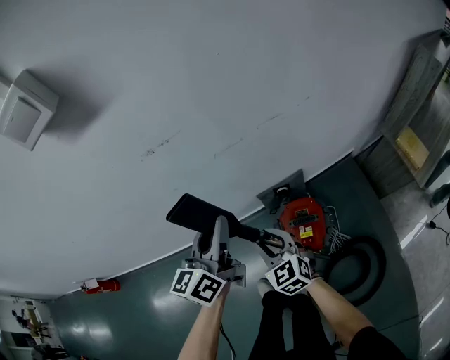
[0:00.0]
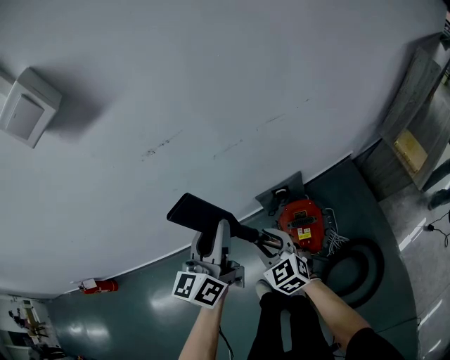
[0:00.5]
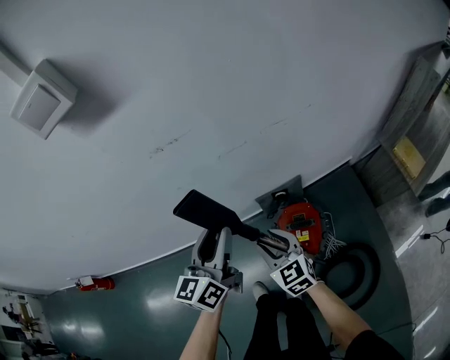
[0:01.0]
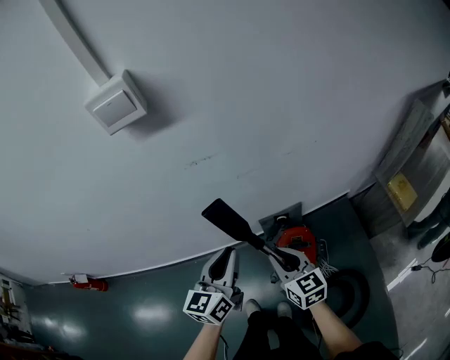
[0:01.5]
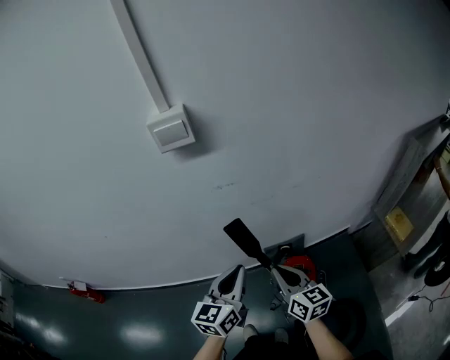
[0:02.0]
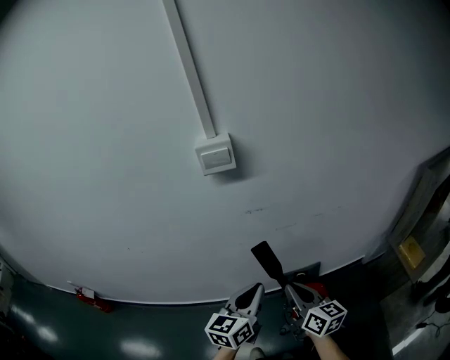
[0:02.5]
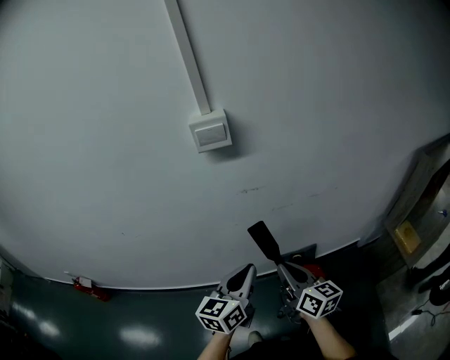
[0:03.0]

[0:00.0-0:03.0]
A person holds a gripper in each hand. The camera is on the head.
0:00.0 to 0:01.5: The right gripper shifts approximately 10 cm upward, and changes its angle by about 20 degrees. Meanwhile the left gripper is displaced backward by some 10 cm.
0:01.5 to 0:03.0: The left gripper moves upward, about 10 cm. Meanwhile the right gripper moves upward and to the left, some 15 cm, and turns by roughly 20 degrees.

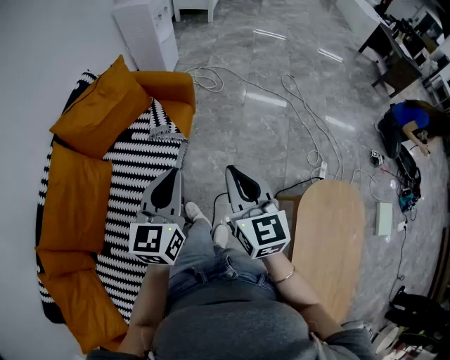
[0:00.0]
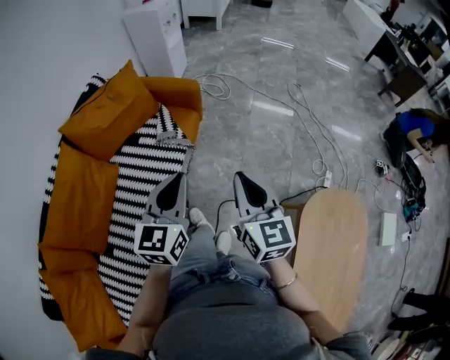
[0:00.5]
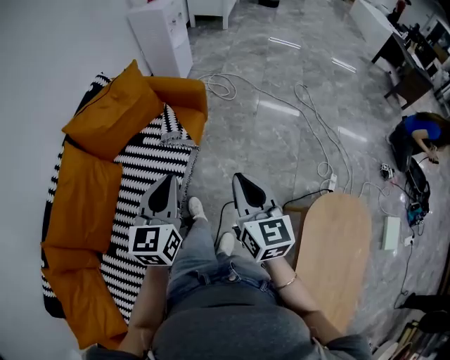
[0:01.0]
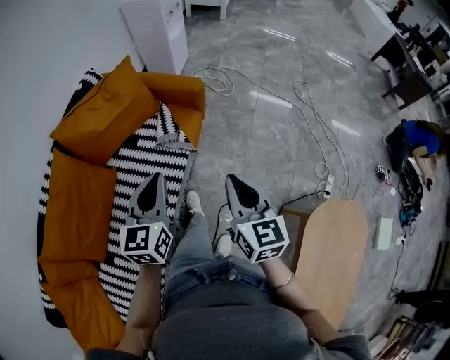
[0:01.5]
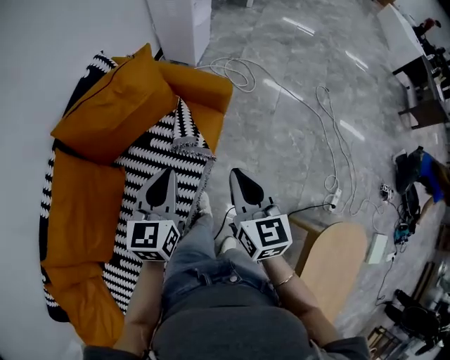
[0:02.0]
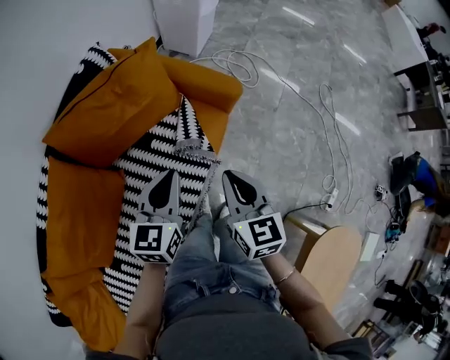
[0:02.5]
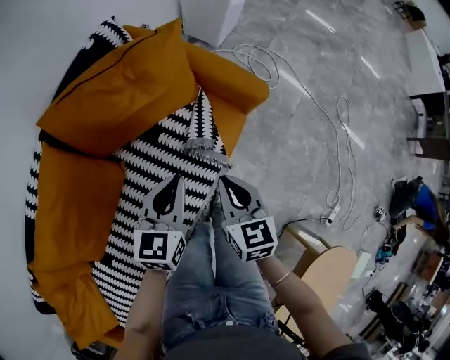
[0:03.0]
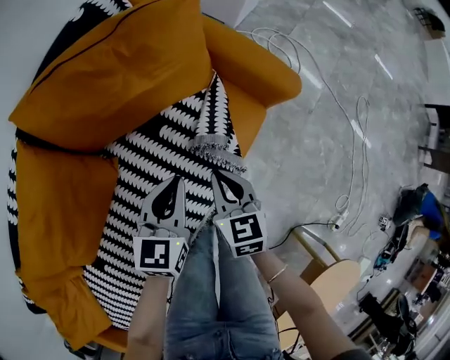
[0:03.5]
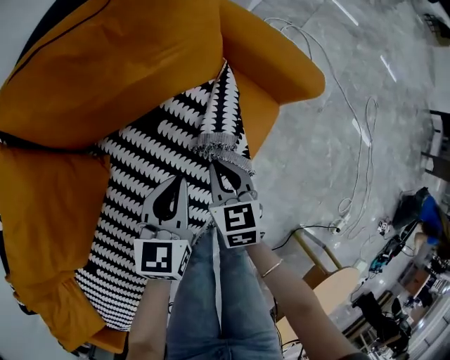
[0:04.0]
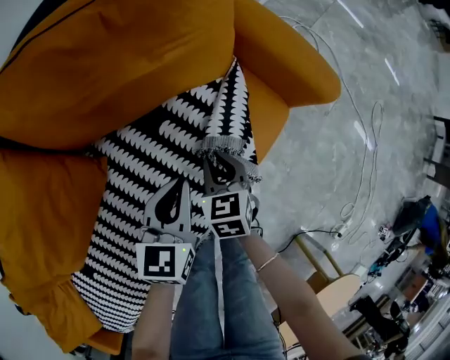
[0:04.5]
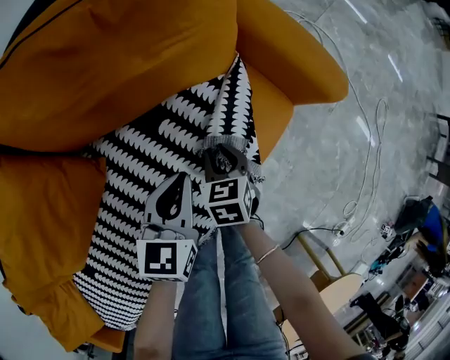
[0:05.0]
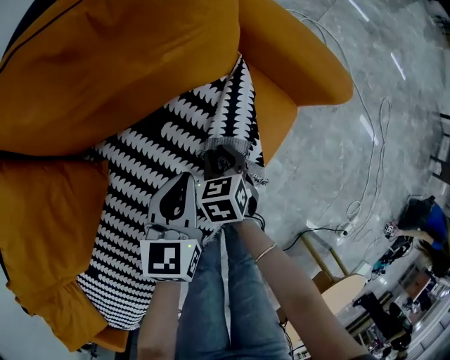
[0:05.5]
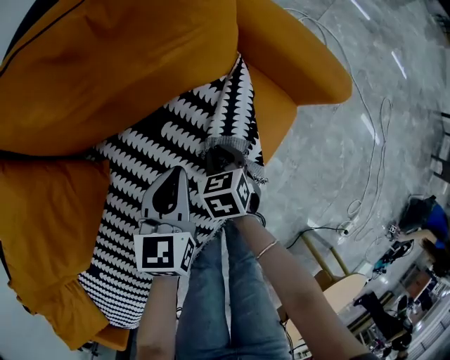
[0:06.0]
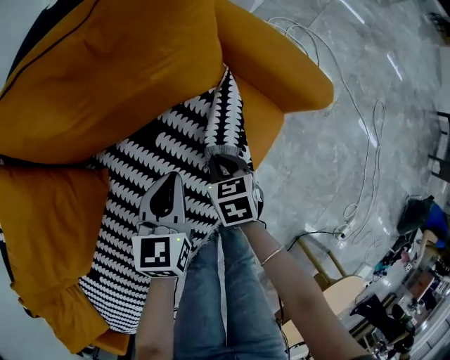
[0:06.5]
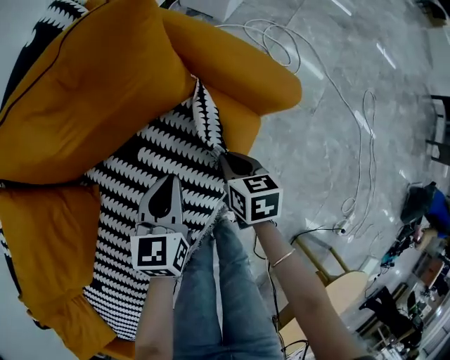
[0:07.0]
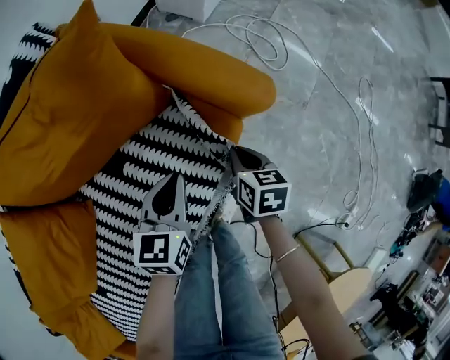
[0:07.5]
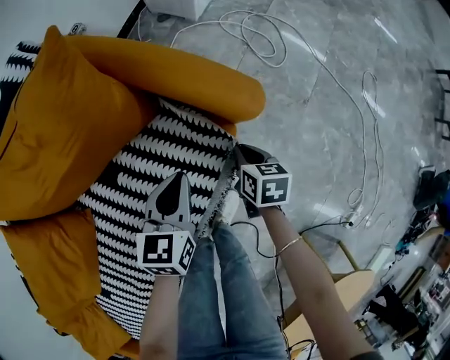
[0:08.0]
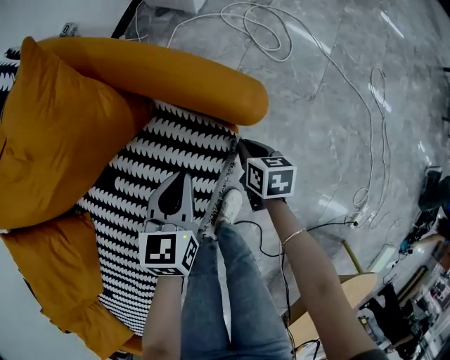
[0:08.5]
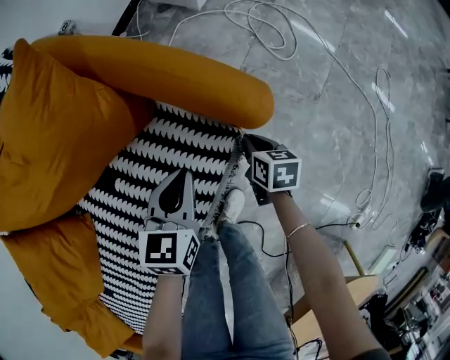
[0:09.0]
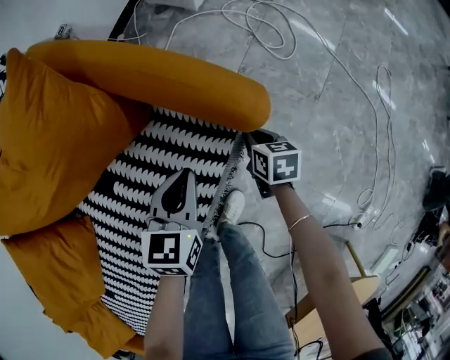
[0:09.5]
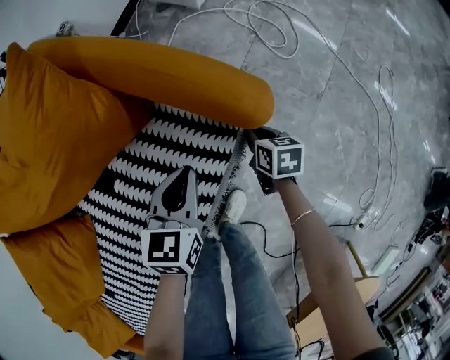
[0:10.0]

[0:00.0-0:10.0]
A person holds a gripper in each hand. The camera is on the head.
0:00.0 to 0:02.0: The two grippers go some 25 cm forward and to the left.
0:02.0 to 0:04.0: The right gripper shifts roughly 40 cm downward, to the left and forward, and turns by some 30 degrees; the left gripper shifts roughly 30 cm downward.
0:04.0 to 0:06.0: The right gripper heads downward, covering roughly 15 cm, and rotates some 20 degrees. The left gripper moves downward, some 5 cm.
0:06.0 to 0:08.0: The grippers both shift to the right by approximately 15 cm. The right gripper turns by roughly 30 degrees.
0:08.0 to 0:10.0: The right gripper is displaced downward by approximately 10 cm; the left gripper shifts by approximately 5 cm.

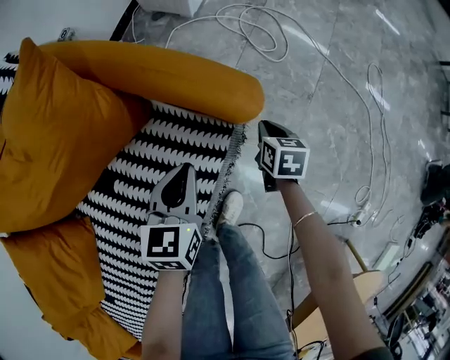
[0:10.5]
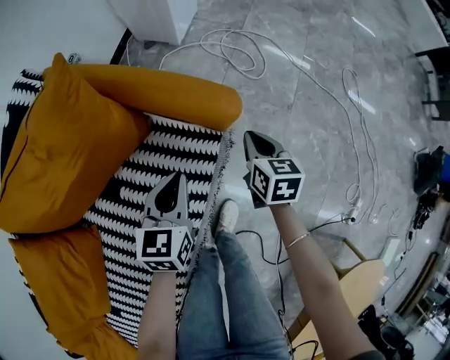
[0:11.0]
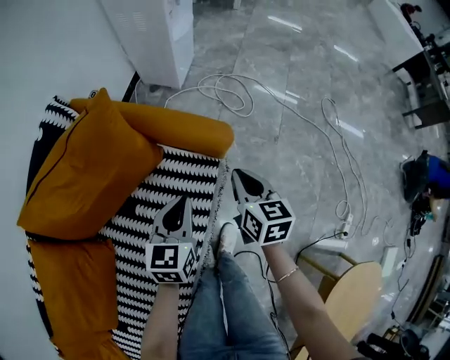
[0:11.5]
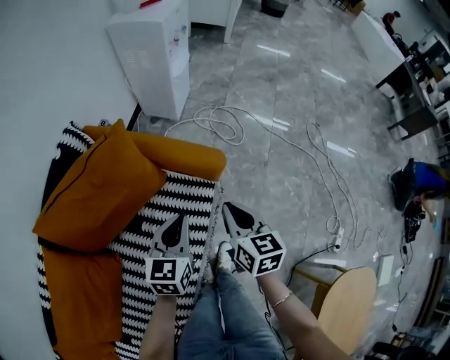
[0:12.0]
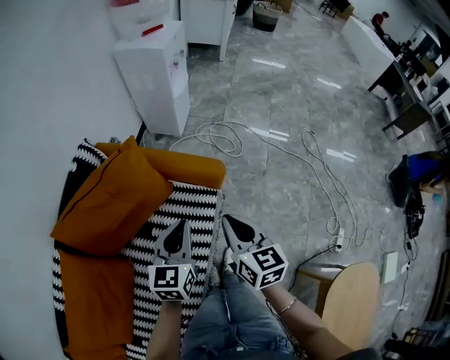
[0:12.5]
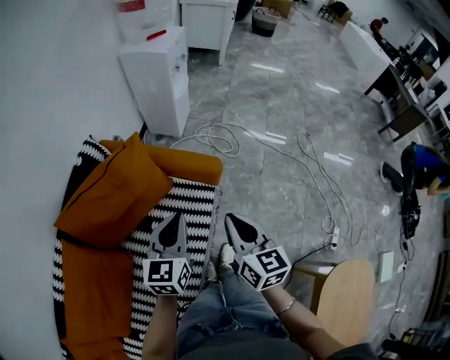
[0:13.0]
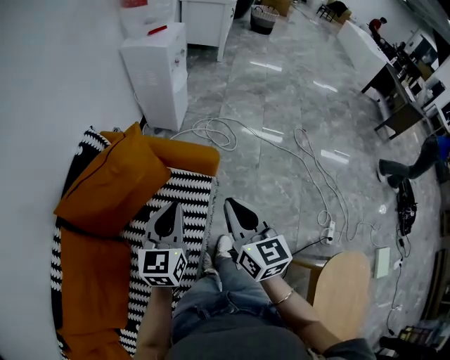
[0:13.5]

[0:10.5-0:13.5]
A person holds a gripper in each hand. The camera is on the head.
0:10.5 to 0:12.0: The left gripper moves upward, about 25 cm, while the right gripper shifts some 40 cm upward and backward, and rotates approximately 30 degrees.
0:12.0 to 0:13.5: The grippers both shift upward and backward by roughly 20 cm.

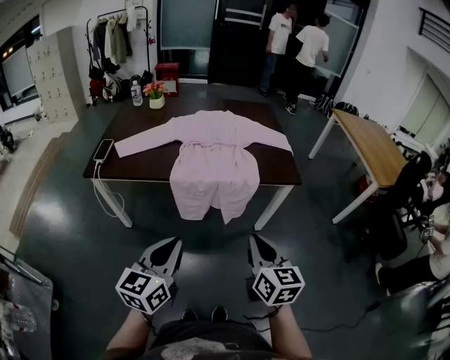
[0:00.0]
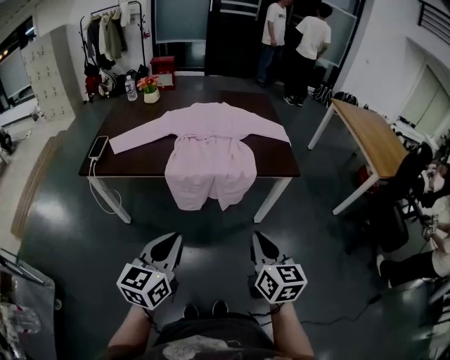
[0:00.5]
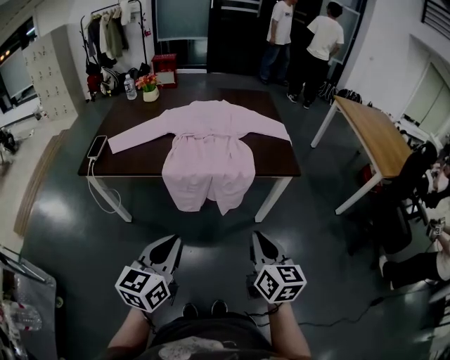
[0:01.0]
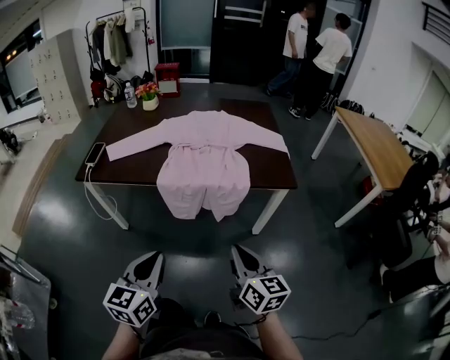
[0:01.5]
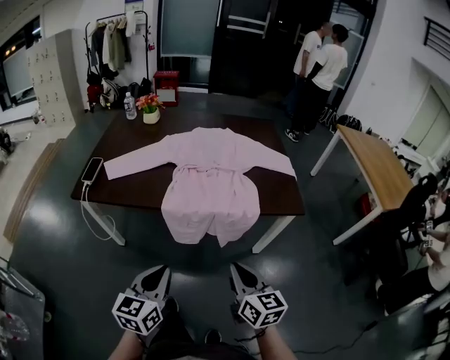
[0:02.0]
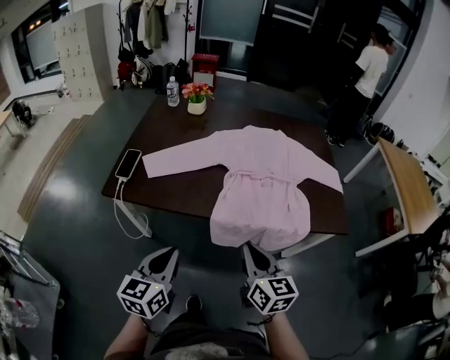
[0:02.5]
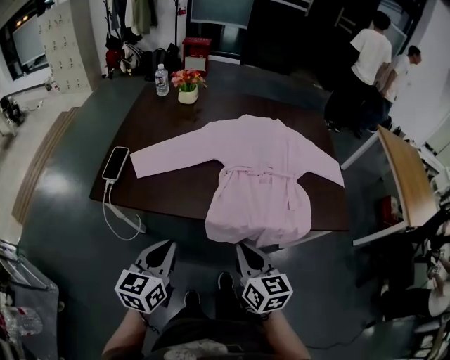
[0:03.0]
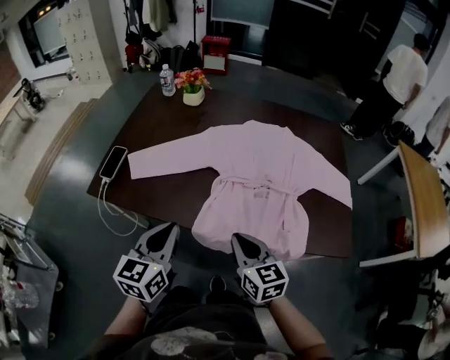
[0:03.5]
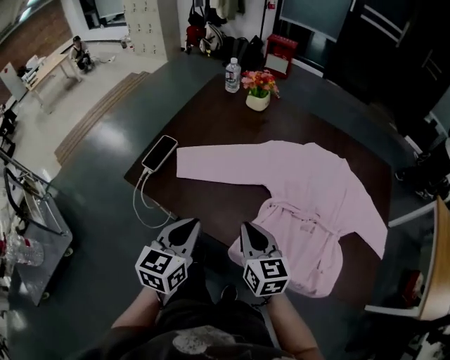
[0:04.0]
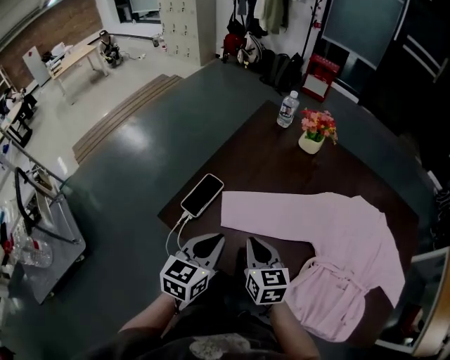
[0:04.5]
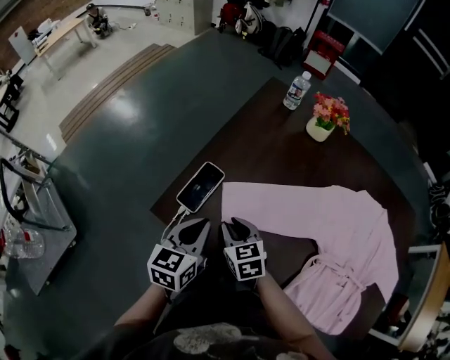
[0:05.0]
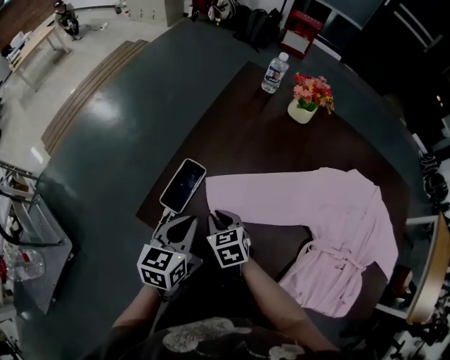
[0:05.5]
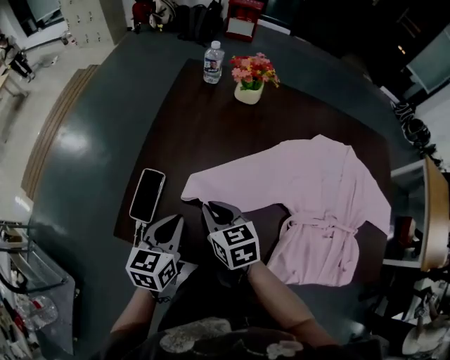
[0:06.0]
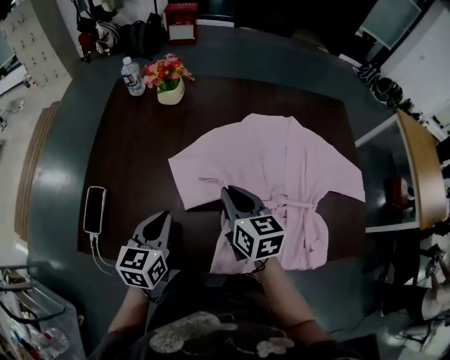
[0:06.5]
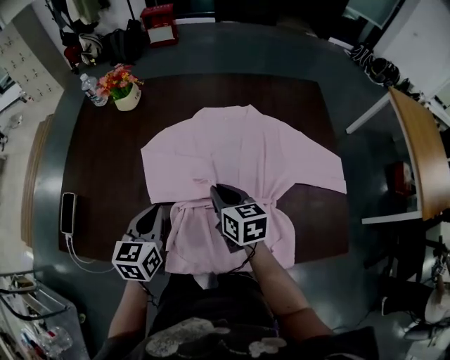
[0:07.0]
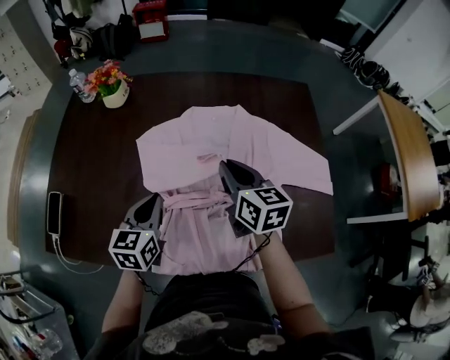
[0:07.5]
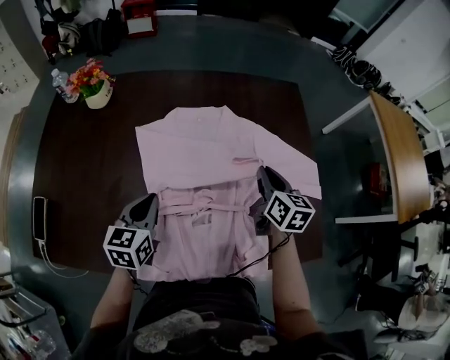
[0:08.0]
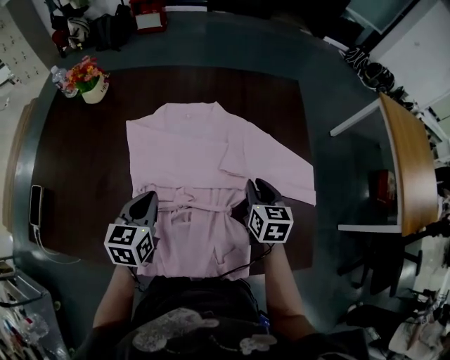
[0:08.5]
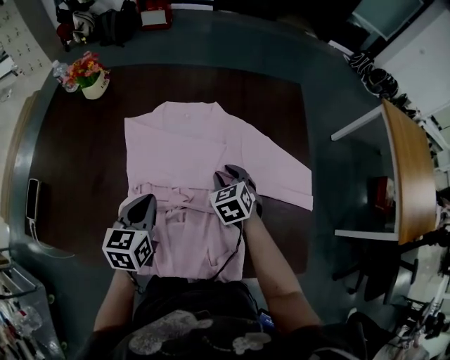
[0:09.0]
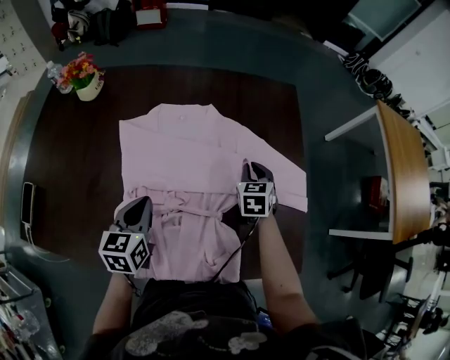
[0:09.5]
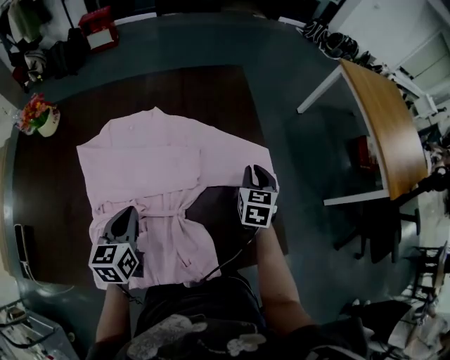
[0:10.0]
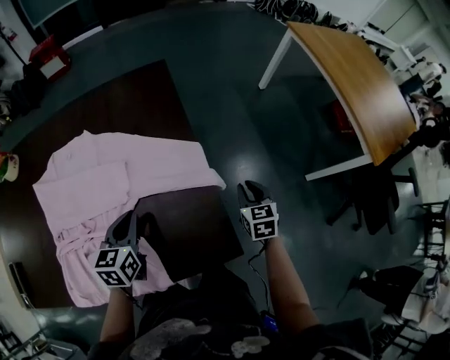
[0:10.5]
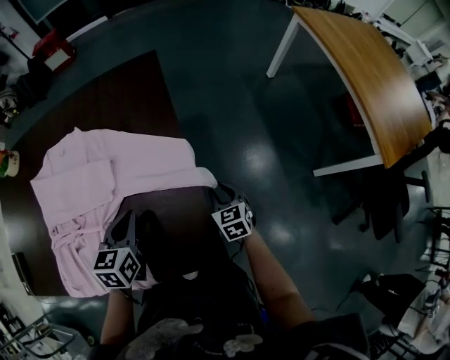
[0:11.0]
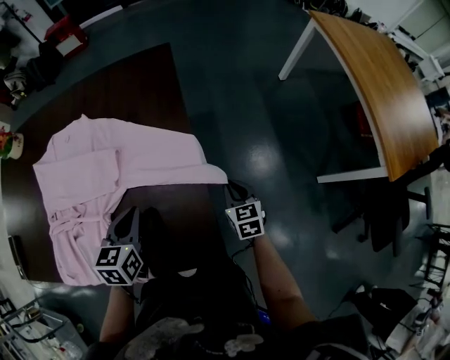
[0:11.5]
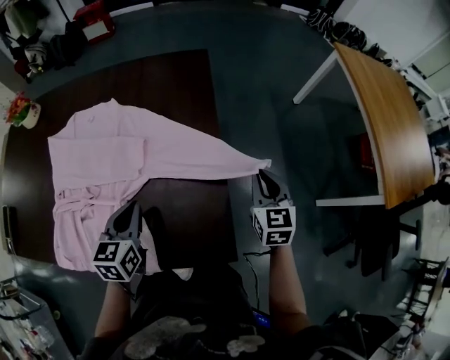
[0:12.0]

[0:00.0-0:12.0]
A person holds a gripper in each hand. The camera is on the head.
0:00.0 to 0:02.0: Both grippers move forward and downward, about 10 cm.
0:02.0 to 0:04.0: Both grippers move forward and to the left, about 40 cm. The left gripper swivels about 20 degrees, while the right gripper rotates roughly 30 degrees.
0:04.0 to 0:06.0: The grippers both shift forward and to the left by about 25 cm.
0:06.0 to 0:08.0: The pair of grippers is taken approximately 50 cm. The right gripper changes its angle by some 40 degrees.
0:08.0 to 0:10.0: The right gripper goes left and right, roughly 25 cm each way, reversing 2 times, and changes its angle by roughly 30 degrees. The left gripper heads to the right, covering about 15 cm.
0:10.0 to 0:12.0: Both grippers travel together to the right, about 20 cm.
